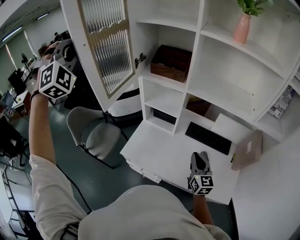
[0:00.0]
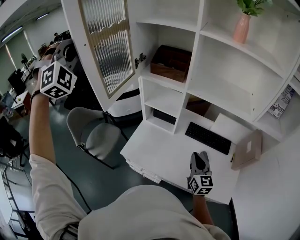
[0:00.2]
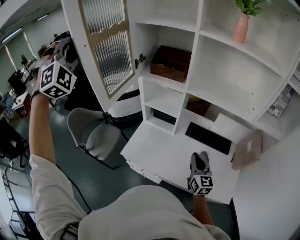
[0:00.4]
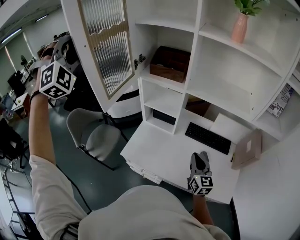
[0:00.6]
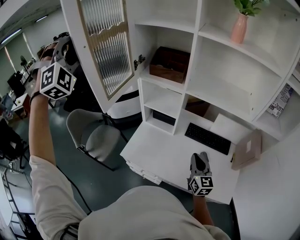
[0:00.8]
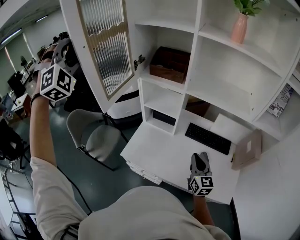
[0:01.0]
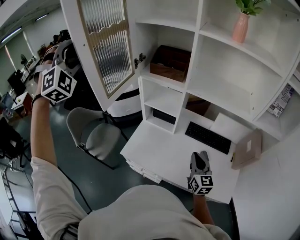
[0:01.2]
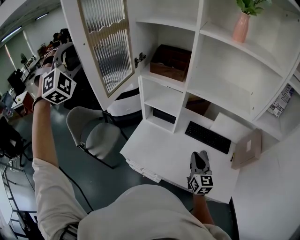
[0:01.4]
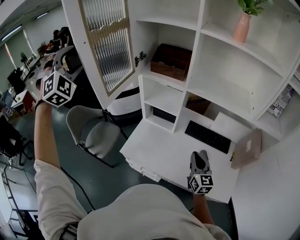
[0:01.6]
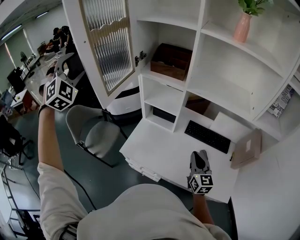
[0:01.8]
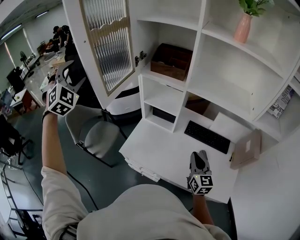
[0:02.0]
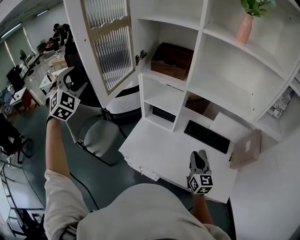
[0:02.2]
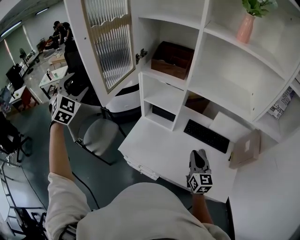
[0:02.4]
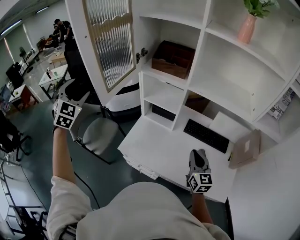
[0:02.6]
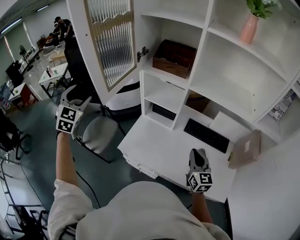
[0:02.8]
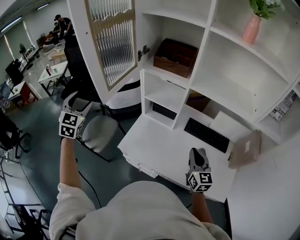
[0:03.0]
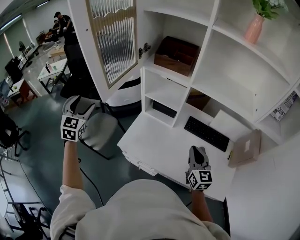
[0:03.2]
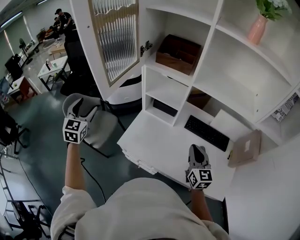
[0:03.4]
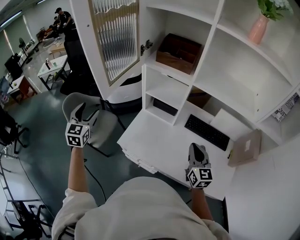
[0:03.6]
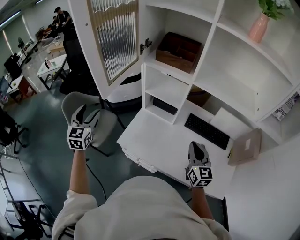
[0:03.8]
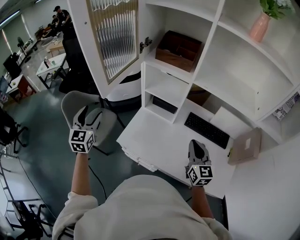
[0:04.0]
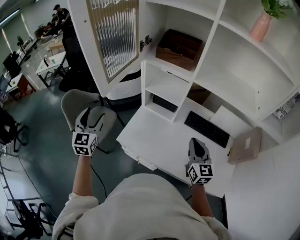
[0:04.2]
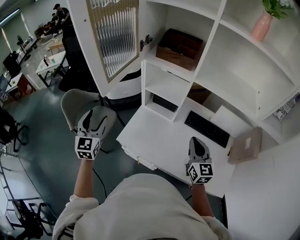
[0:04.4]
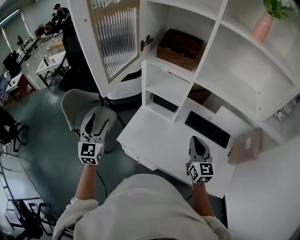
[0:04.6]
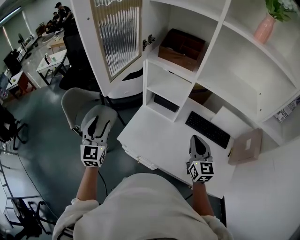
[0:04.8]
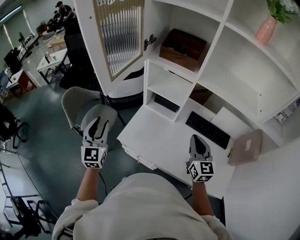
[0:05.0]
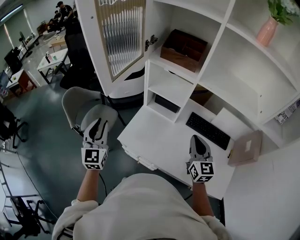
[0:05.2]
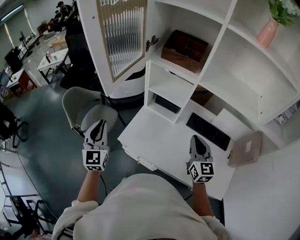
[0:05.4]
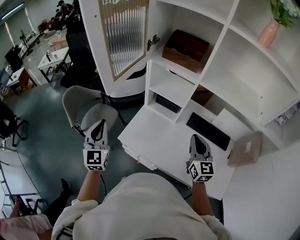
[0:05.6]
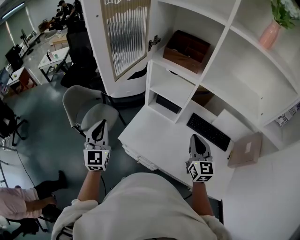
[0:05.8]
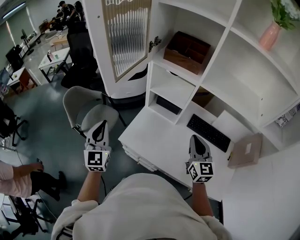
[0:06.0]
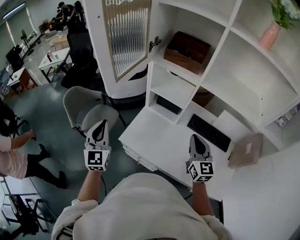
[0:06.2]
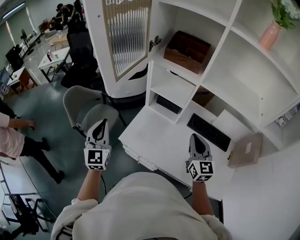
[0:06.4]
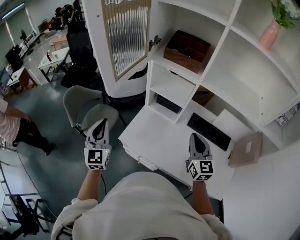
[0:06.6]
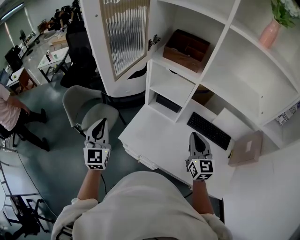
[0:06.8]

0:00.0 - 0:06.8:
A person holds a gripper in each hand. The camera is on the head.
0:00.0 - 0:01.4: The left gripper opens up.
0:01.4 - 0:02.8: The left gripper moves downward, approximately 20 cm, and rolls counterclockwise, seen from behind, by some 50 degrees.
0:02.8 - 0:04.0: The left gripper shifts about 10 cm downward and backward, and swivels some 30 degrees.
0:04.0 - 0:05.4: The left gripper heads backward, covering some 5 cm, and closes its fingers.
0:05.4 - 0:06.8: The grippers move only a little.

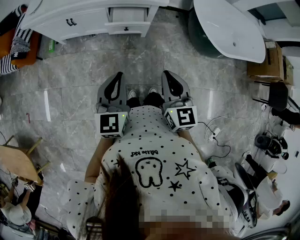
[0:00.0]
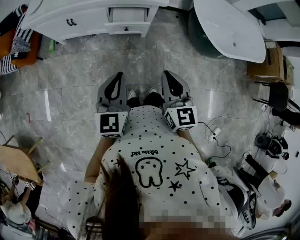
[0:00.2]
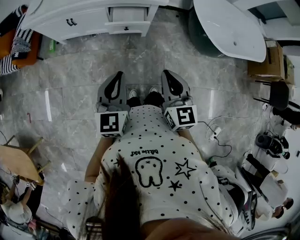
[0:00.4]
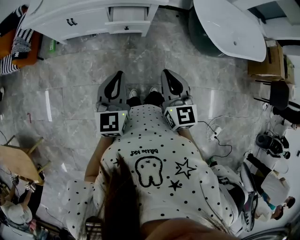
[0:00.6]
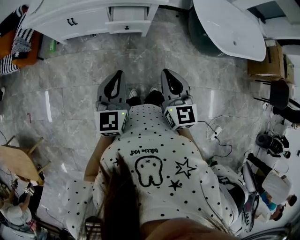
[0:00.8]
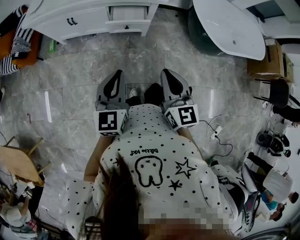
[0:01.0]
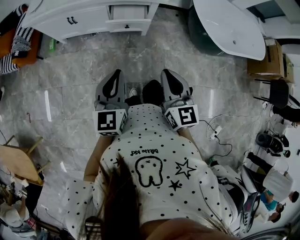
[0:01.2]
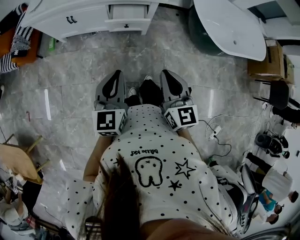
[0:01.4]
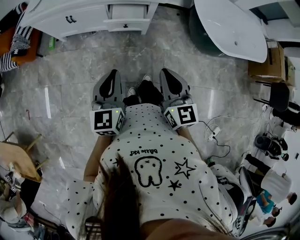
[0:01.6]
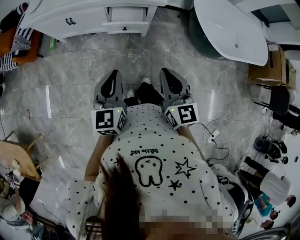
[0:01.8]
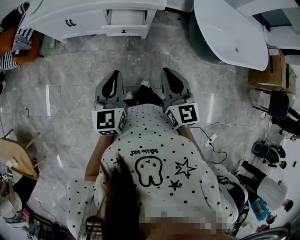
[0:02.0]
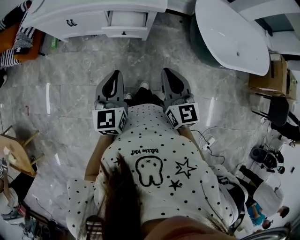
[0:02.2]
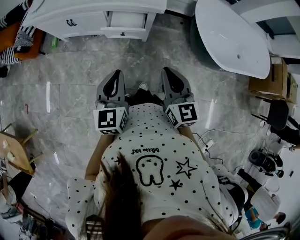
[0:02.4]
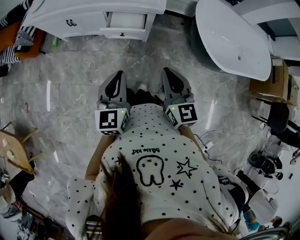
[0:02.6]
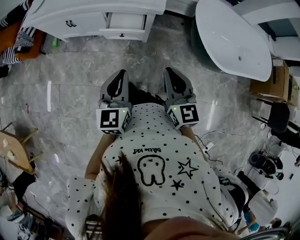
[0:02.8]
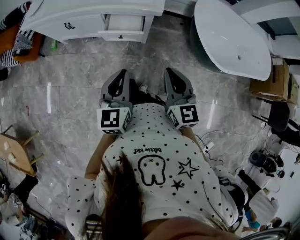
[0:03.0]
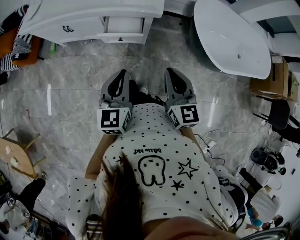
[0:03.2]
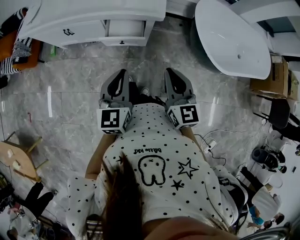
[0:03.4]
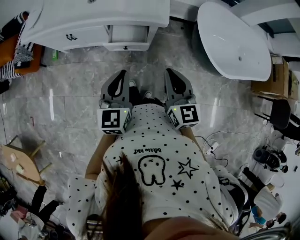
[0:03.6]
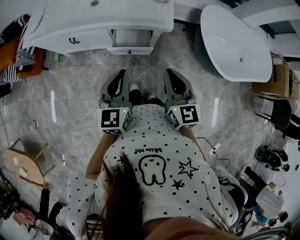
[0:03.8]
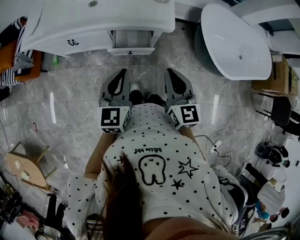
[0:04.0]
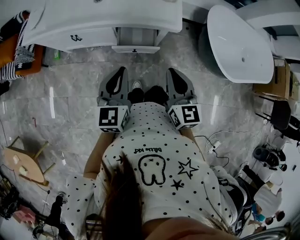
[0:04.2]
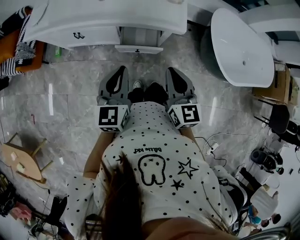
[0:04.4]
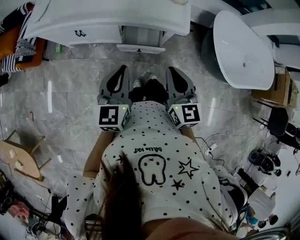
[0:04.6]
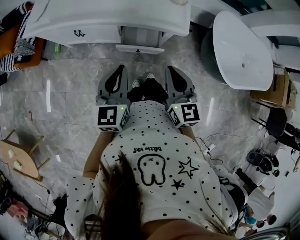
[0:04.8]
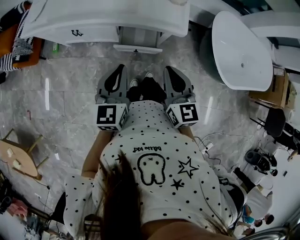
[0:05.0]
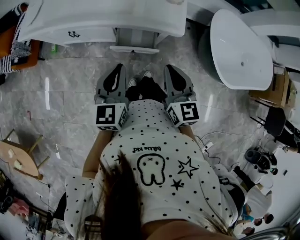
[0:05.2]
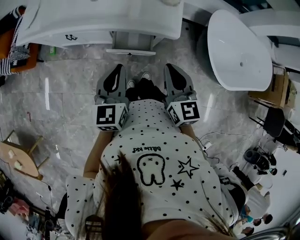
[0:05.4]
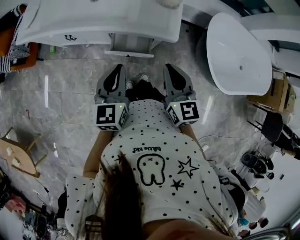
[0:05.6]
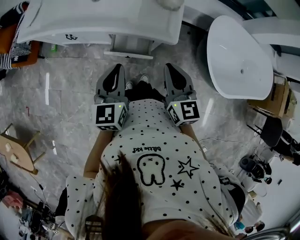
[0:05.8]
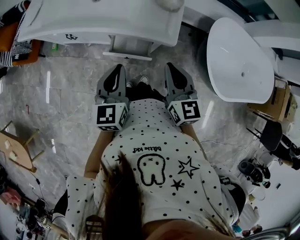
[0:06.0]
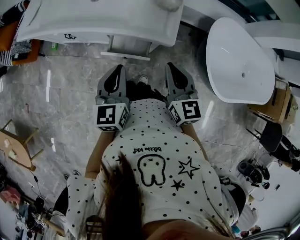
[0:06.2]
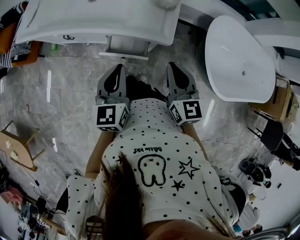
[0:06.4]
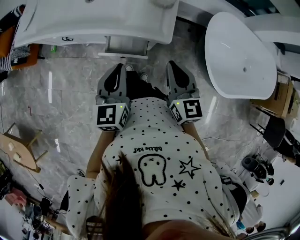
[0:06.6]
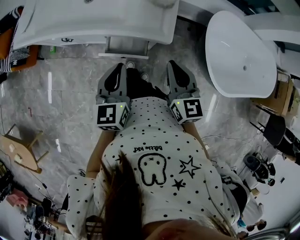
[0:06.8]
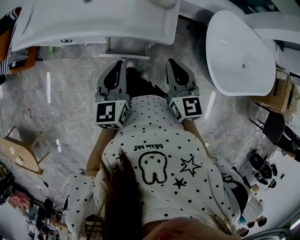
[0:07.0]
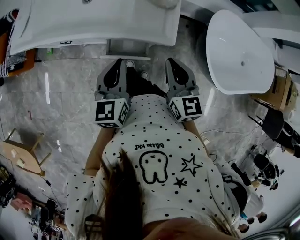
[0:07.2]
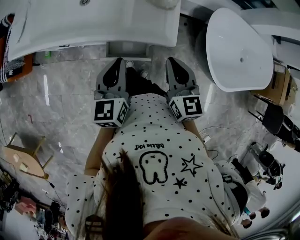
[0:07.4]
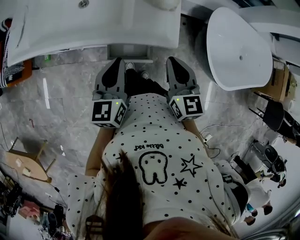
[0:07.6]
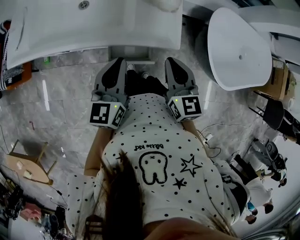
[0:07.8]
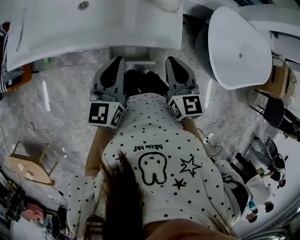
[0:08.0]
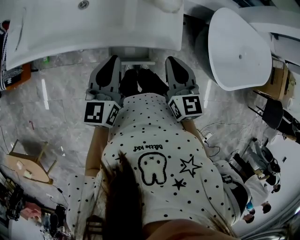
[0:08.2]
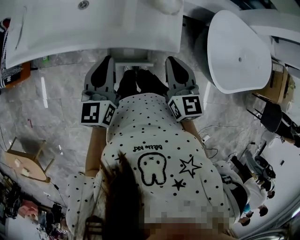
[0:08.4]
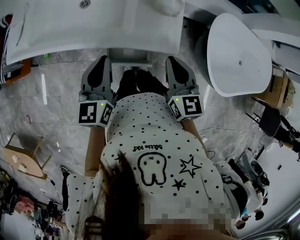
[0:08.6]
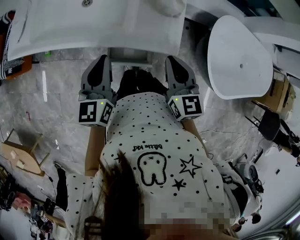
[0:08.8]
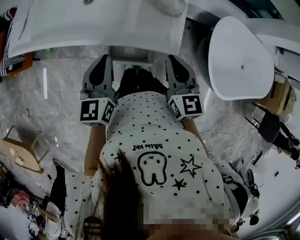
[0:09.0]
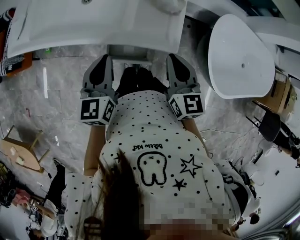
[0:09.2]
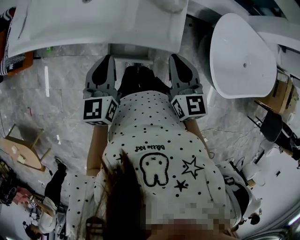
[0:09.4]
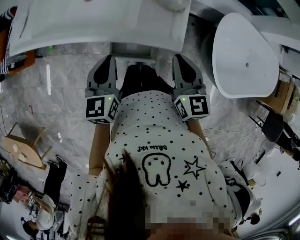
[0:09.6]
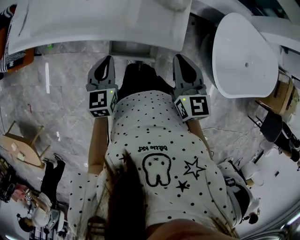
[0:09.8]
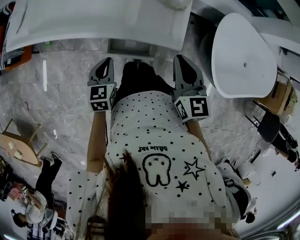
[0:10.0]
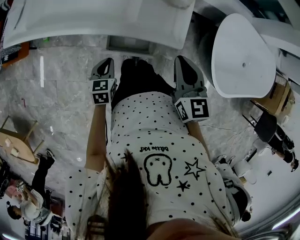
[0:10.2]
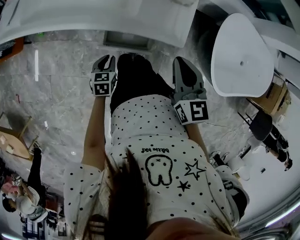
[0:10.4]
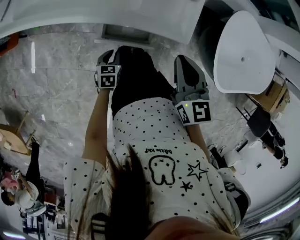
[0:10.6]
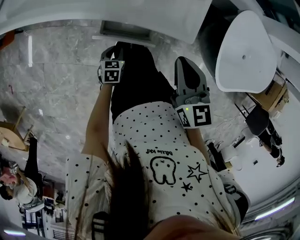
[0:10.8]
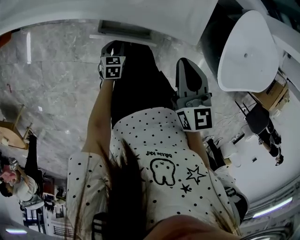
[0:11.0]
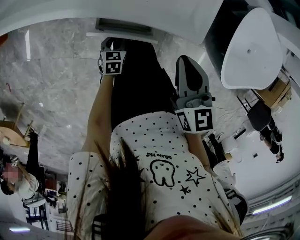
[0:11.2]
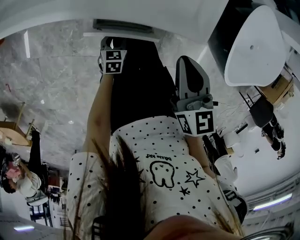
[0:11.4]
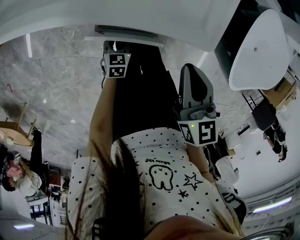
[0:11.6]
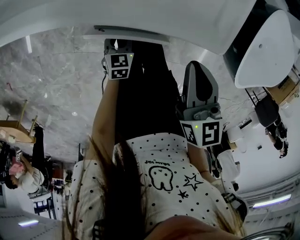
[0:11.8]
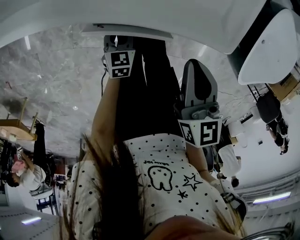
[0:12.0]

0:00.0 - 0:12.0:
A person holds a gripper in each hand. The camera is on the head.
0:00.0 - 0:01.6: The grippers stay close to where they were, moving slightly.
0:01.6 - 0:03.0: The two grippers go about 15 cm to the right and forward.
0:03.0 - 0:04.4: Both grippers travel together forward and to the left, roughly 20 cm.
0:04.4 - 0:06.0: Both grippers move forward and to the right, roughly 10 cm.
0:06.0 - 0:07.6: Both grippers move forward, roughly 10 cm.
0:07.6 - 0:09.0: The grippers stay close to where they were, moving slightly.
0:09.0 - 0:10.4: The left gripper heads downward, covering roughly 30 cm, and points its fingers about 40 degrees further downward.
0:10.4 - 0:12.0: Both grippers travel together downward, approximately 15 cm.

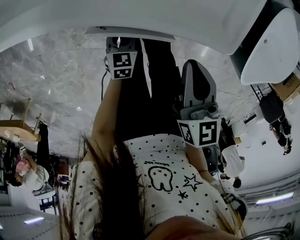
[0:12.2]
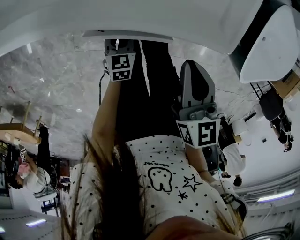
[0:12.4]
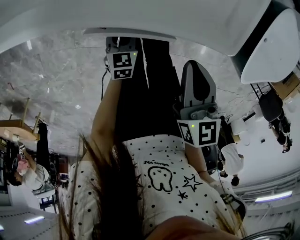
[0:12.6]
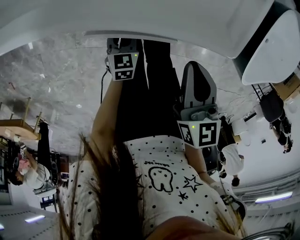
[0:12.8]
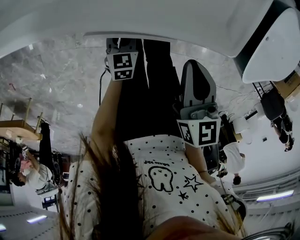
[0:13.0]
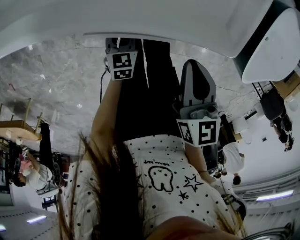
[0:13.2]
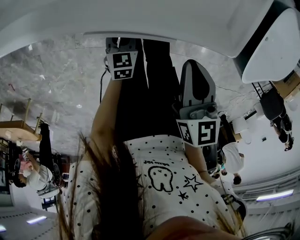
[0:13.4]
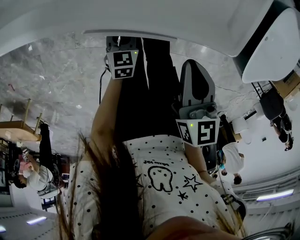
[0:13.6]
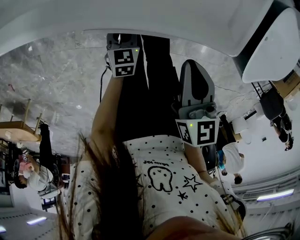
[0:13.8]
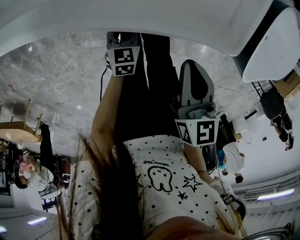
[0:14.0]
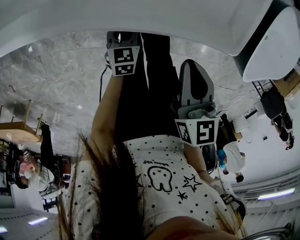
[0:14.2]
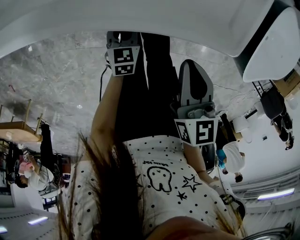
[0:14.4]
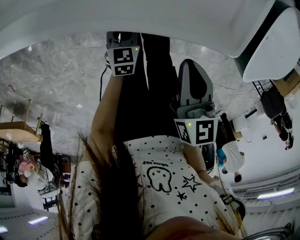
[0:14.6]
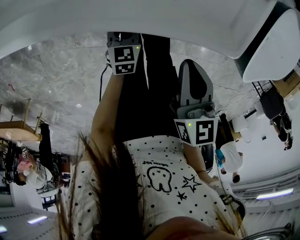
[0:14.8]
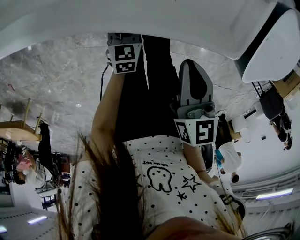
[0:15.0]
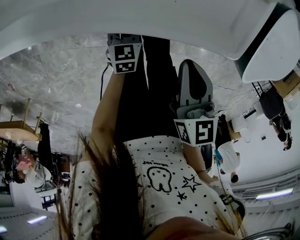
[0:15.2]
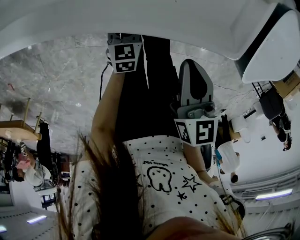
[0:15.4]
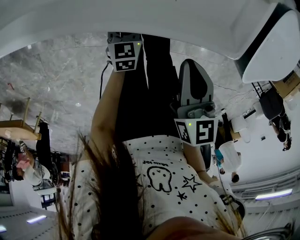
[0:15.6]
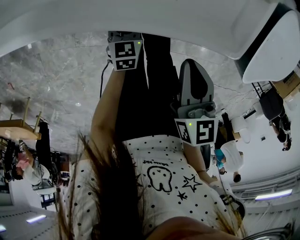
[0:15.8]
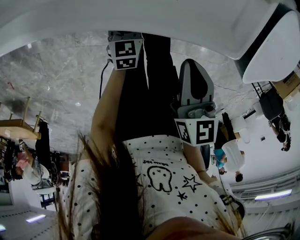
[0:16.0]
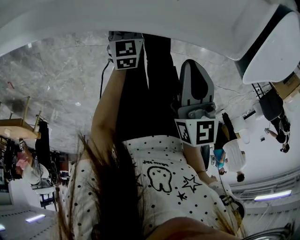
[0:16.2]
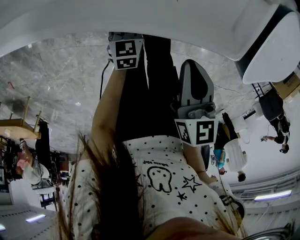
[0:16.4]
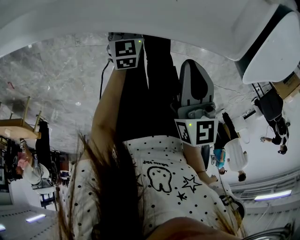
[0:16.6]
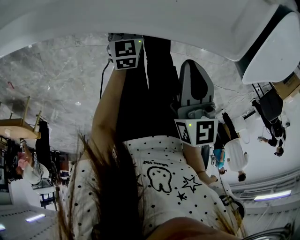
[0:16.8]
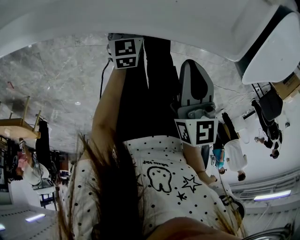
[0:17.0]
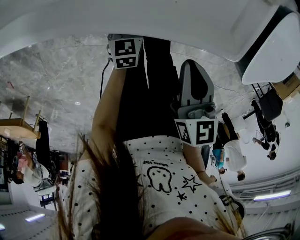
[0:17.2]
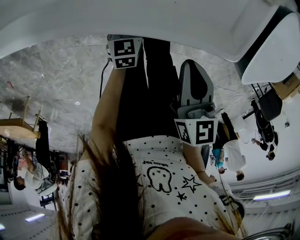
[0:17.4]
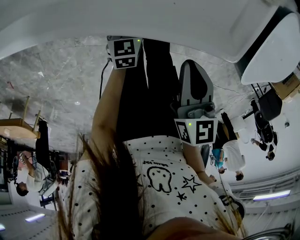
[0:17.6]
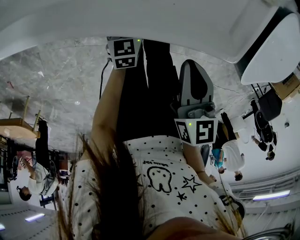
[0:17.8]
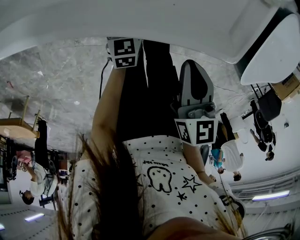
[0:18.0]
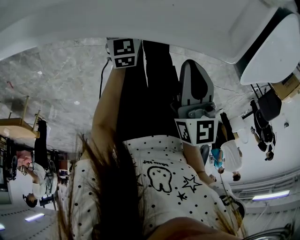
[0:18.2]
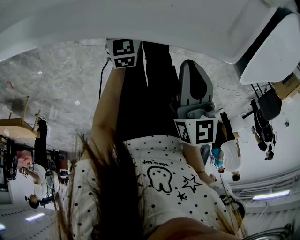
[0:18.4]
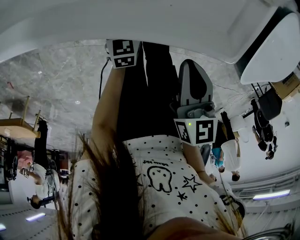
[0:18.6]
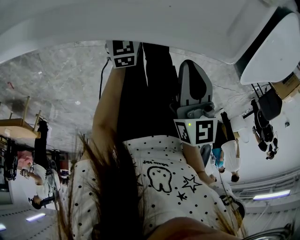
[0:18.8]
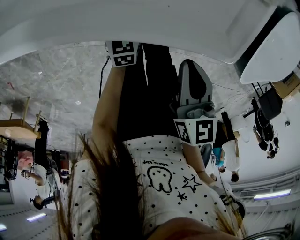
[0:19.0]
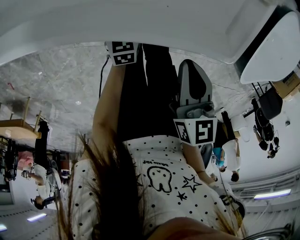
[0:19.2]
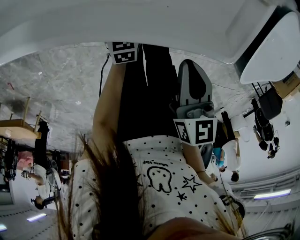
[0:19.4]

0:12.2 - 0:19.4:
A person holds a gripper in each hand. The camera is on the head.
0:12.2 - 0:15.0: The grippers make only small movements.
0:15.0 - 0:16.6: Both grippers stay about where they are.
0:16.6 - 0:18.0: Both grippers stay put.
0:18.0 - 0:19.4: The grippers make only small movements.
